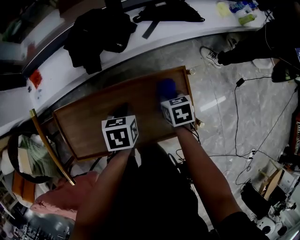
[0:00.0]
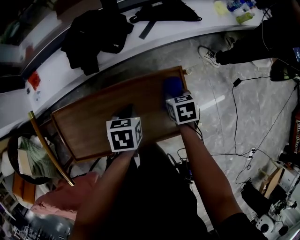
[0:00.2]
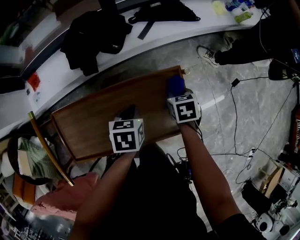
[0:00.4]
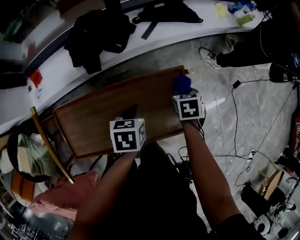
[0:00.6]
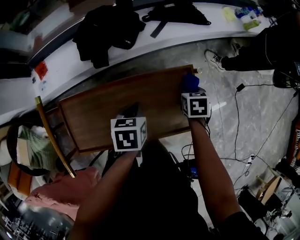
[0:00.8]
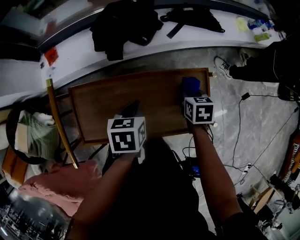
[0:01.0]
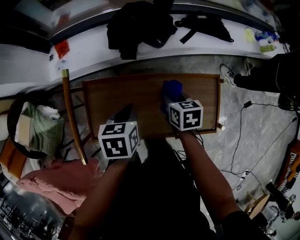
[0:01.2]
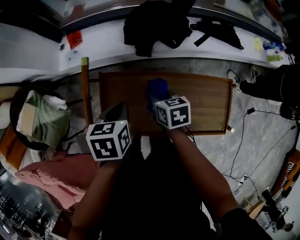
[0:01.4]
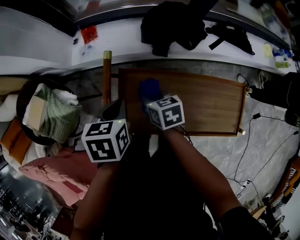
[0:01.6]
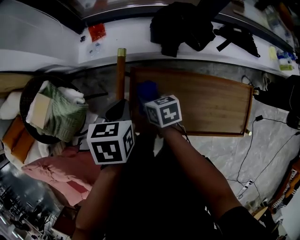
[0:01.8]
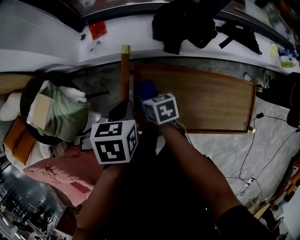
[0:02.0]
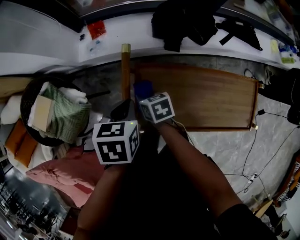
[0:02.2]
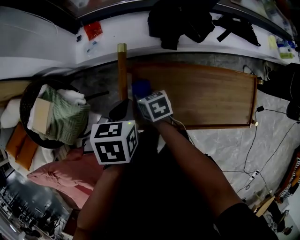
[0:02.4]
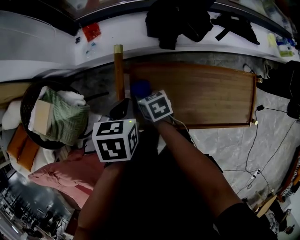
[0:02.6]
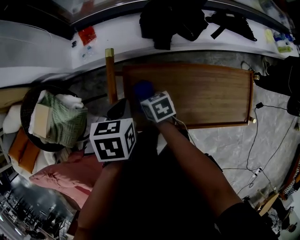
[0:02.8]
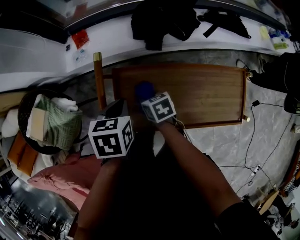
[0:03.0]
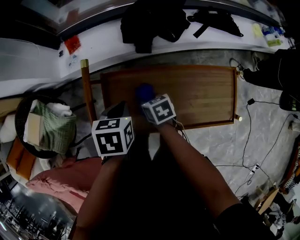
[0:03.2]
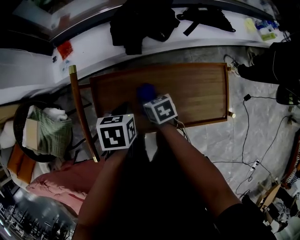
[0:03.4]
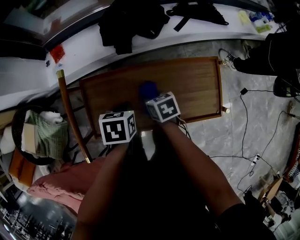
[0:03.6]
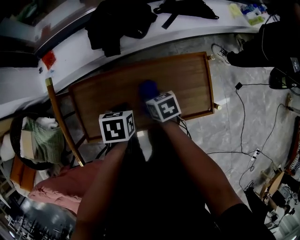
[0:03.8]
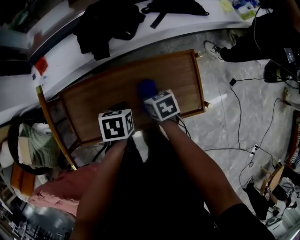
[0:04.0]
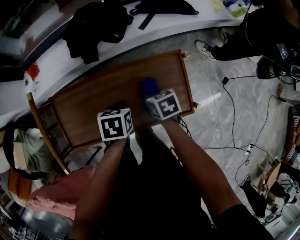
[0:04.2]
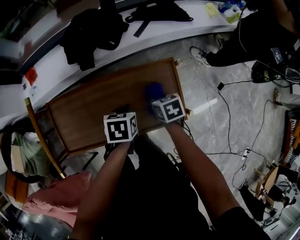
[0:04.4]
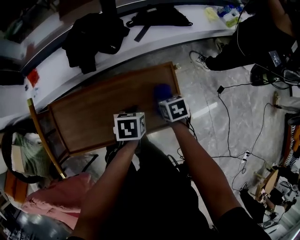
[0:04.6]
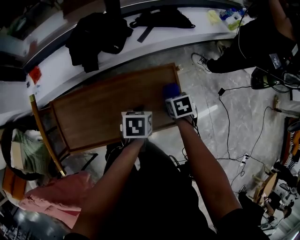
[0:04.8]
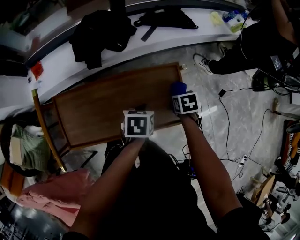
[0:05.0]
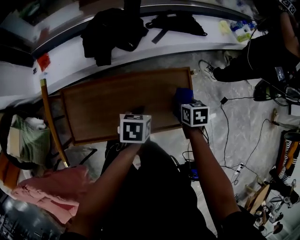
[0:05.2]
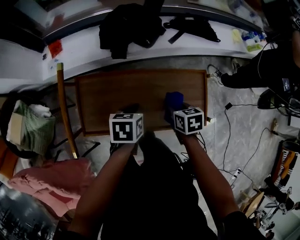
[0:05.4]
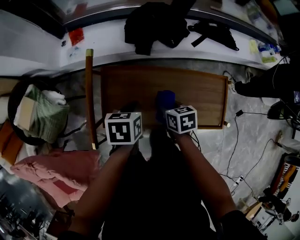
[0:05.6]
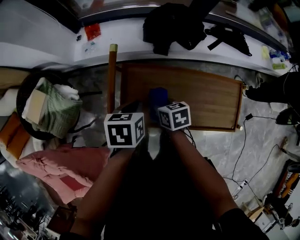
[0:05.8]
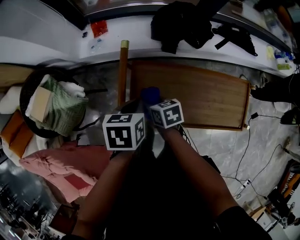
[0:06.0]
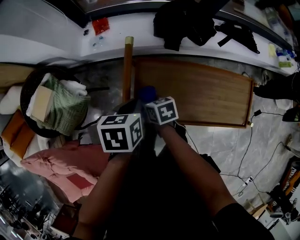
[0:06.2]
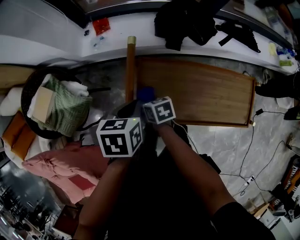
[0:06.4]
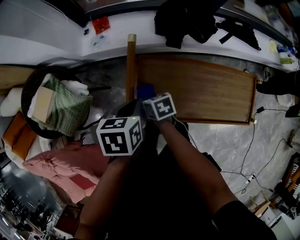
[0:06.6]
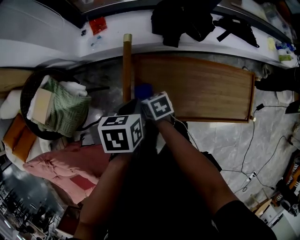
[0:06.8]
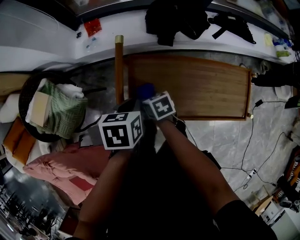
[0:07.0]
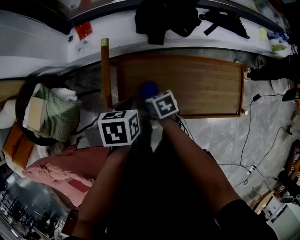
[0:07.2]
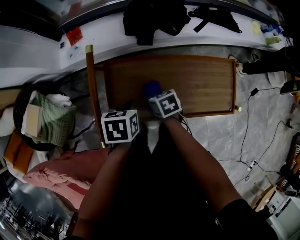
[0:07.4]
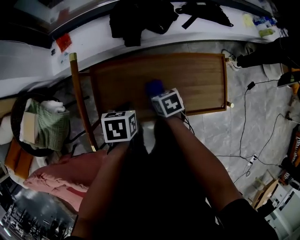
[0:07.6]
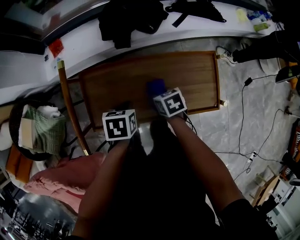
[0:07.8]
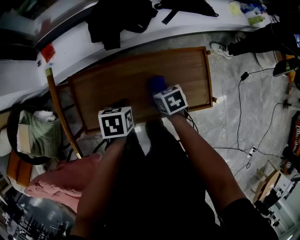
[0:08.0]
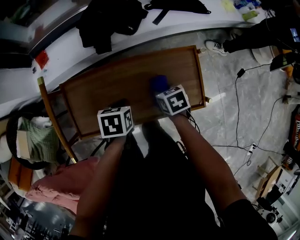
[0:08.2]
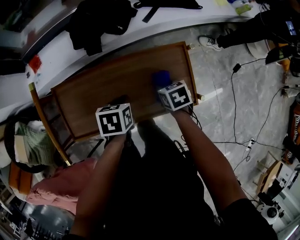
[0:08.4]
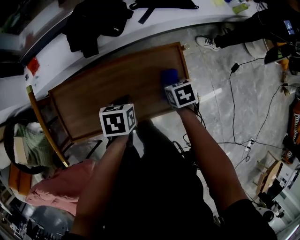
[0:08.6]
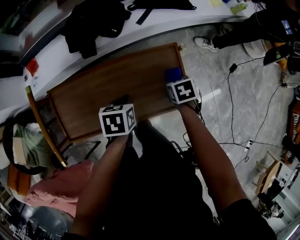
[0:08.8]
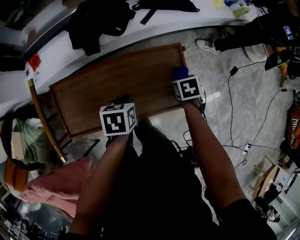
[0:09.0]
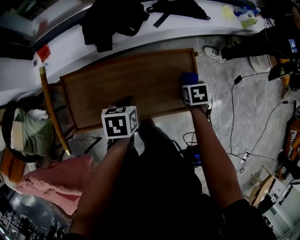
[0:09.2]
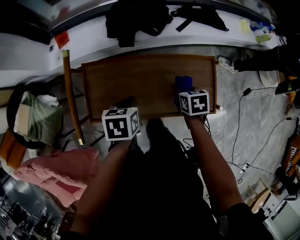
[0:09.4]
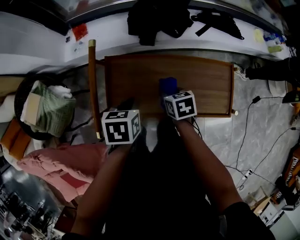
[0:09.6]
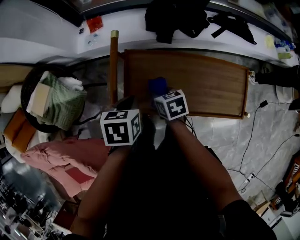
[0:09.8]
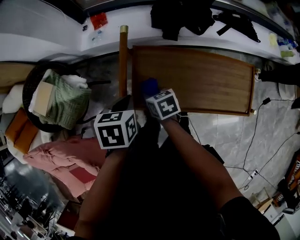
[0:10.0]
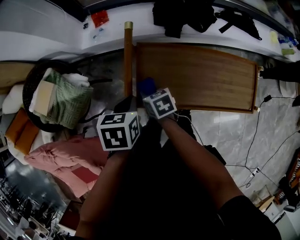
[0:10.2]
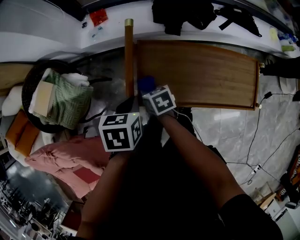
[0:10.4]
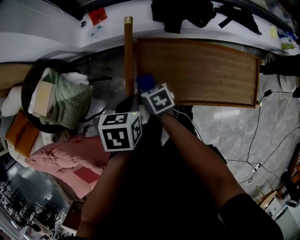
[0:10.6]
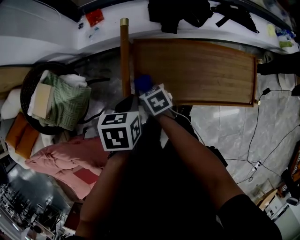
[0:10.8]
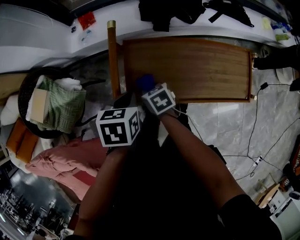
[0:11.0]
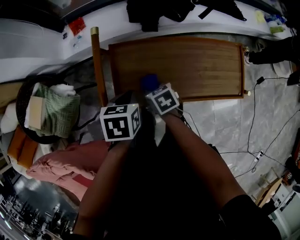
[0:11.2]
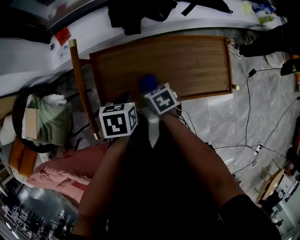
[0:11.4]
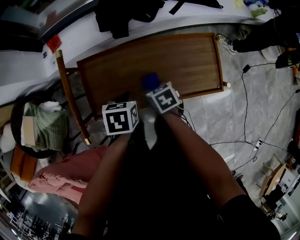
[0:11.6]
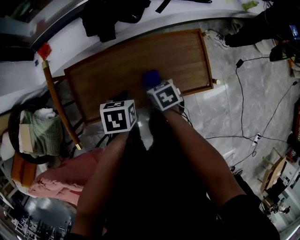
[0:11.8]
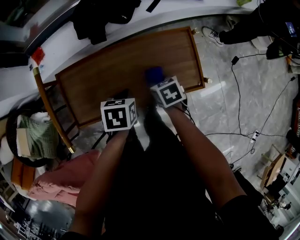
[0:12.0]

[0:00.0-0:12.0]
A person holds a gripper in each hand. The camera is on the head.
0:00.0 to 0:01.6: The left gripper ends up roughly 35 cm from where it was, while the right gripper moves approximately 40 cm, and rotates approximately 30 degrees.
0:01.6 to 0:03.0: The right gripper moves downward, about 5 cm, and reaches some 10 cm to the left, then returns.
0:03.0 to 0:04.4: The right gripper ends up about 40 cm from where it was. Meanwhile the left gripper changes place by some 35 cm.
0:04.4 to 0:06.0: The left gripper changes place by about 35 cm; the right gripper ends up about 40 cm from where it was, and swivels about 20 degrees.
0:06.0 to 0:07.6: The right gripper travels to the right by roughly 15 cm, while the left gripper is displaced to the right and downward by some 10 cm.
0:07.6 to 0:09.0: The left gripper ends up approximately 20 cm from where it was, while the right gripper moves approximately 35 cm, and rotates approximately 30 degrees.
0:09.0 to 0:10.4: The left gripper changes place by some 35 cm; the right gripper ends up roughly 60 cm from where it was, and rotates roughly 40 degrees.
0:10.4 to 0:12.0: The left gripper changes place by about 30 cm. Meanwhile the right gripper moves roughly 40 cm.

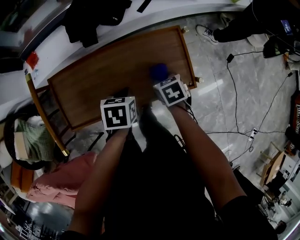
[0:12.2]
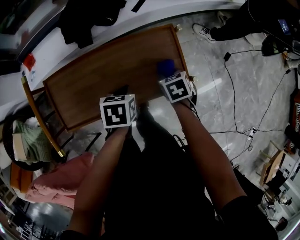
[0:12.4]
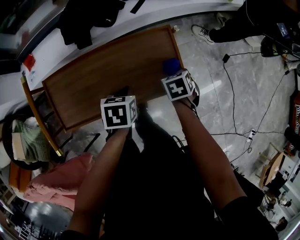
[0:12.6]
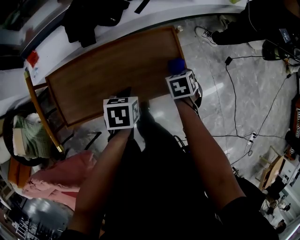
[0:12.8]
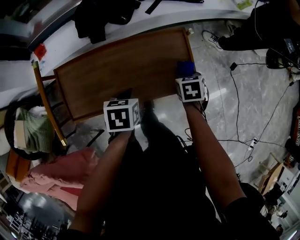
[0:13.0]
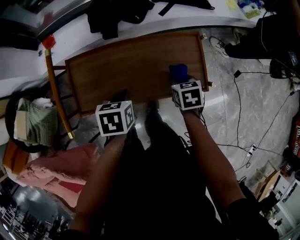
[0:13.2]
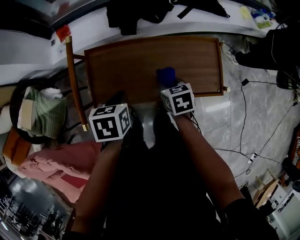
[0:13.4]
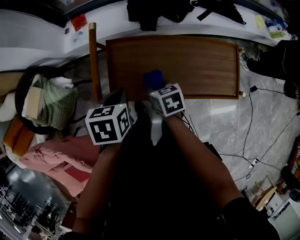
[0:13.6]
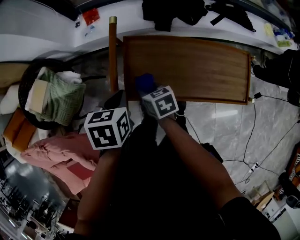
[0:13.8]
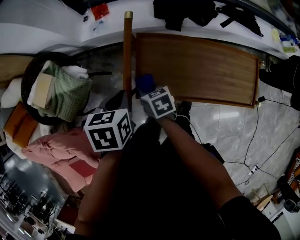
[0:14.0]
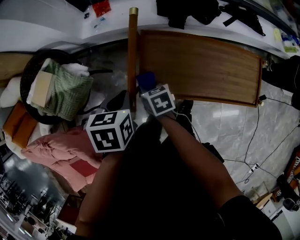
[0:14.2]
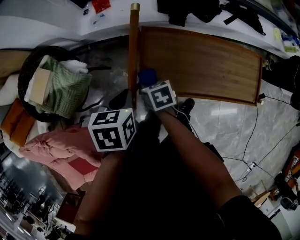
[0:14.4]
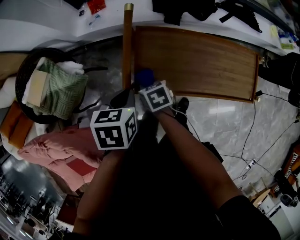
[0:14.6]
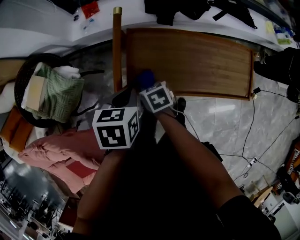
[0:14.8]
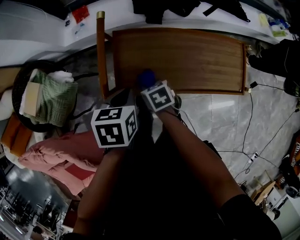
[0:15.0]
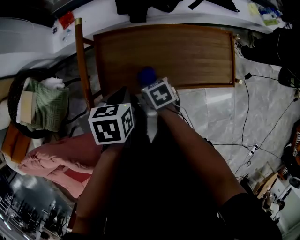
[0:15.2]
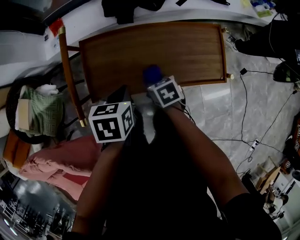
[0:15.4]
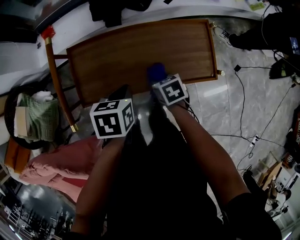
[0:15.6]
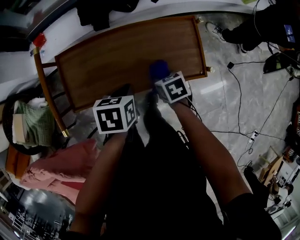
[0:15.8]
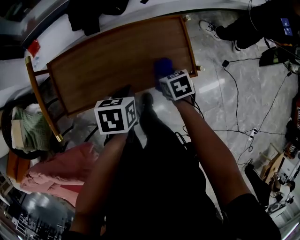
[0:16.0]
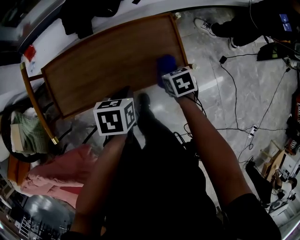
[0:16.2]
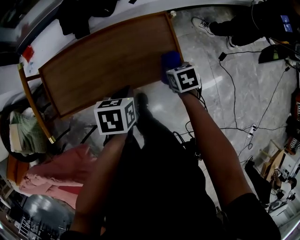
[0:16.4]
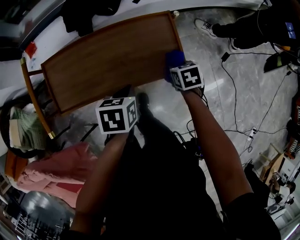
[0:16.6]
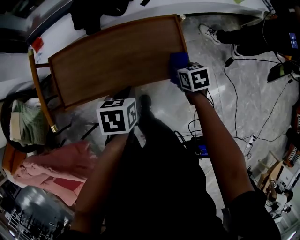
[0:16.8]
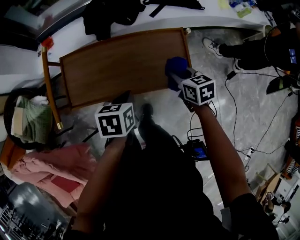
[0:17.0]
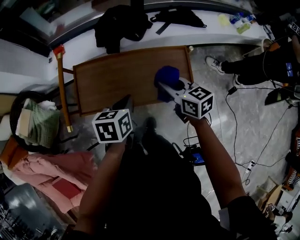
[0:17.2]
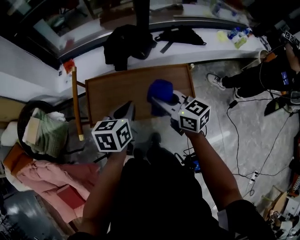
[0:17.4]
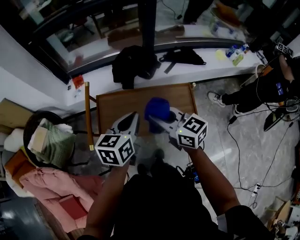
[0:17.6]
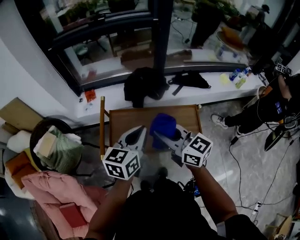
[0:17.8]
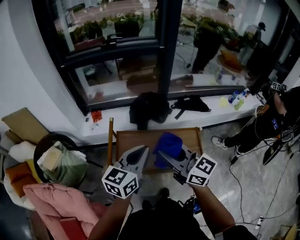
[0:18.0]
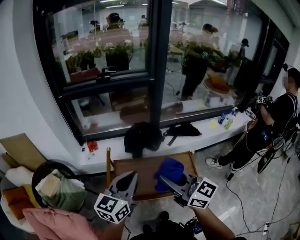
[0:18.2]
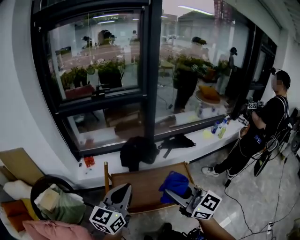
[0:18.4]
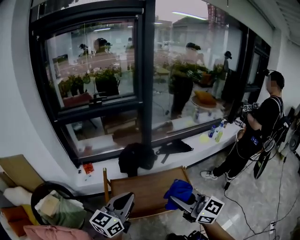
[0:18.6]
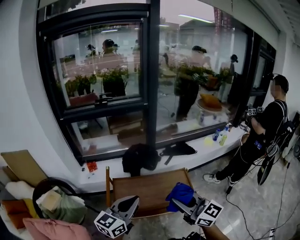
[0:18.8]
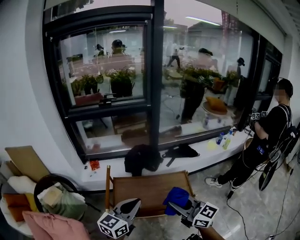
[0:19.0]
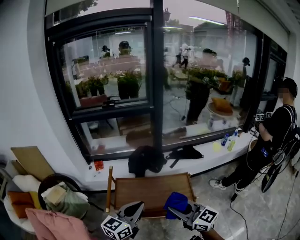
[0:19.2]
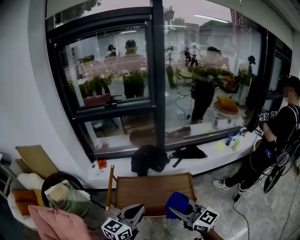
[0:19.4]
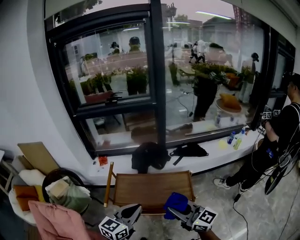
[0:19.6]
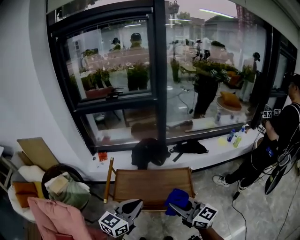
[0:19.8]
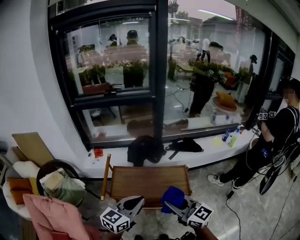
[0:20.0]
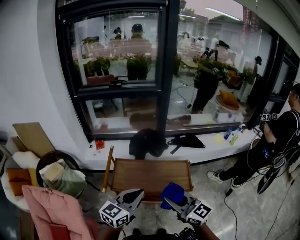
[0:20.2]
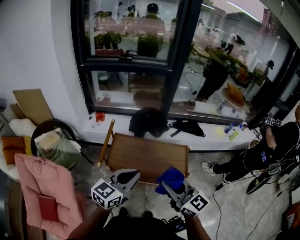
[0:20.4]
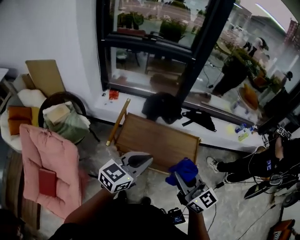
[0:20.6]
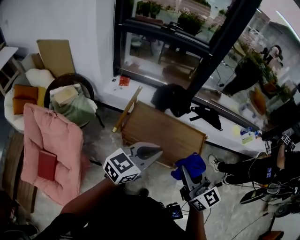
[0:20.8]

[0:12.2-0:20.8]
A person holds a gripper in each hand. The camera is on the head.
0:12.2 to 0:13.6: The right gripper shifts by approximately 30 cm. Meanwhile the left gripper changes place by about 25 cm.
0:13.6 to 0:15.0: The left gripper goes to the left and returns, about 10 cm each way, while the right gripper shifts about 5 cm to the left.
0:15.0 to 0:16.6: The right gripper changes place by roughly 40 cm, and changes its angle by some 20 degrees. The left gripper ends up roughly 30 cm from where it was.
0:16.6 to 0:18.0: Both grippers move upward, some 40 cm. The left gripper points its fingers some 50 degrees further upward. Meanwhile the right gripper tilts its fingers about 70 degrees upward.
0:18.0 to 0:19.4: The right gripper heads backward and to the right, covering roughly 15 cm, while the left gripper heads backward, covering about 10 cm.
0:19.4 to 0:20.8: The grippers move only a little.

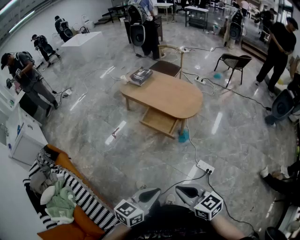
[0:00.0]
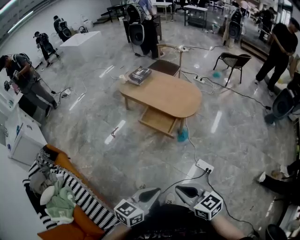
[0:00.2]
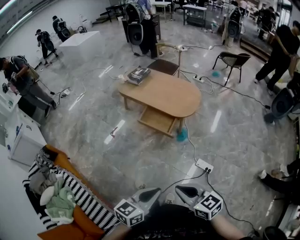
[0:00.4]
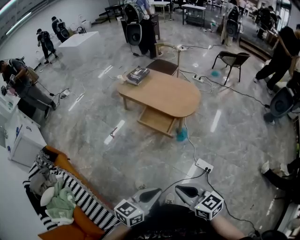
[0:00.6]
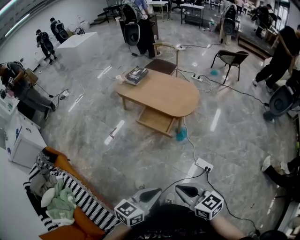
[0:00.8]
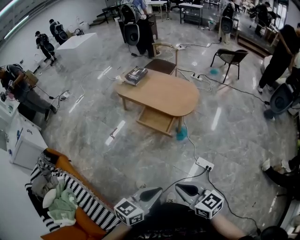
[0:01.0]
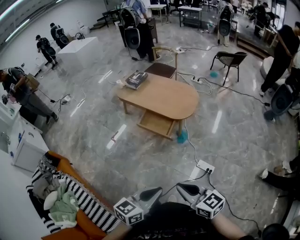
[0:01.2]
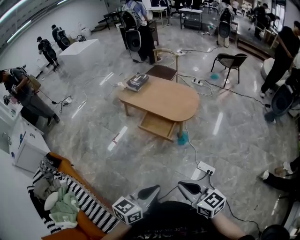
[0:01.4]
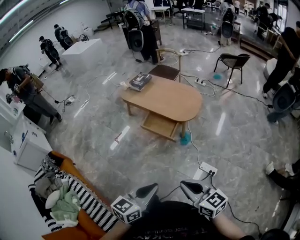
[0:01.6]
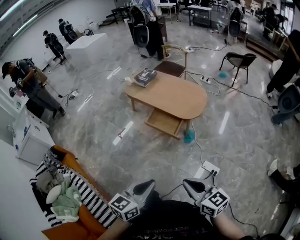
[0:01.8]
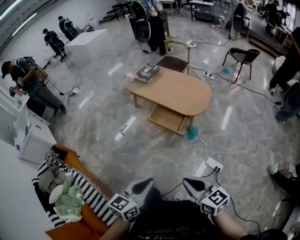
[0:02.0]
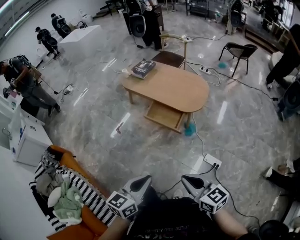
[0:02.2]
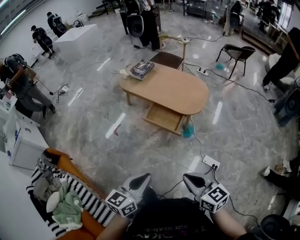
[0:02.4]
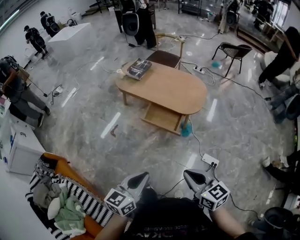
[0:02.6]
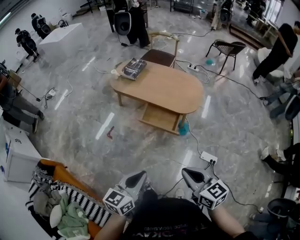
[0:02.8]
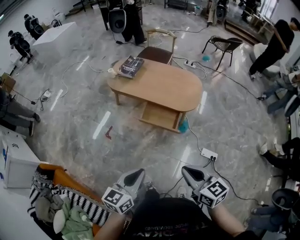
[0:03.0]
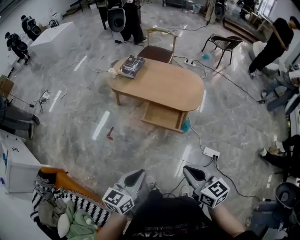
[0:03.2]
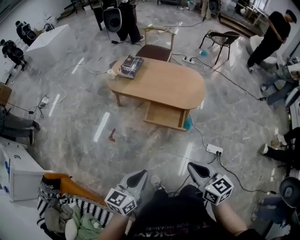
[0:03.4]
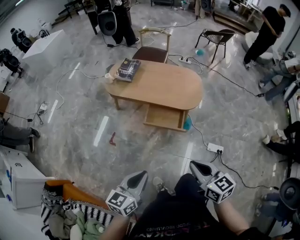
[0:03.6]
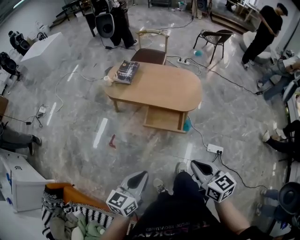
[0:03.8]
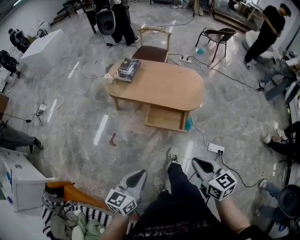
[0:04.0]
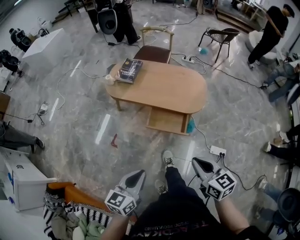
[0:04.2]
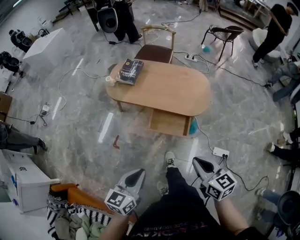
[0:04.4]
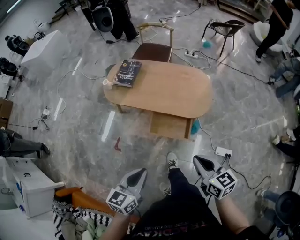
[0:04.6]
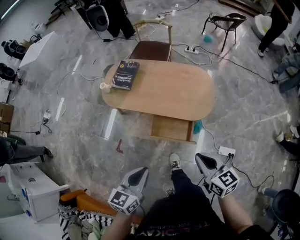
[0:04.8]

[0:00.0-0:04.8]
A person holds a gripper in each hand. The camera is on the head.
0:00.0 to 0:01.6: The right gripper changes place by about 5 cm.
0:01.6 to 0:03.2: Both grippers move to the left and forward, approximately 30 cm.
0:03.2 to 0:04.8: Both grippers travel together forward, some 25 cm.
